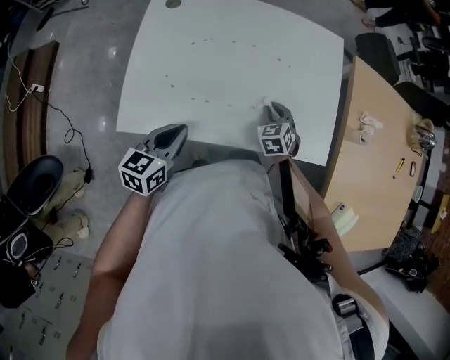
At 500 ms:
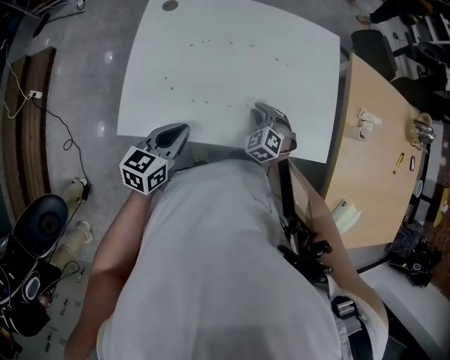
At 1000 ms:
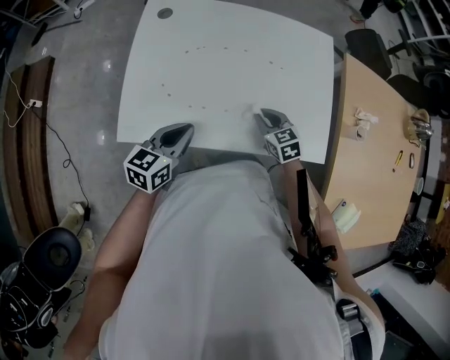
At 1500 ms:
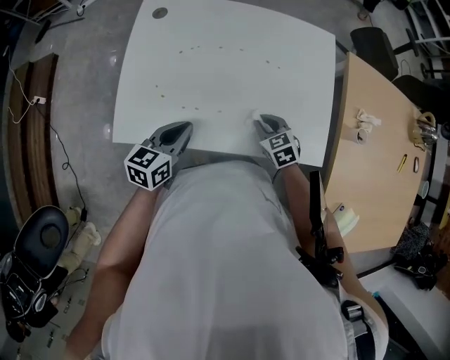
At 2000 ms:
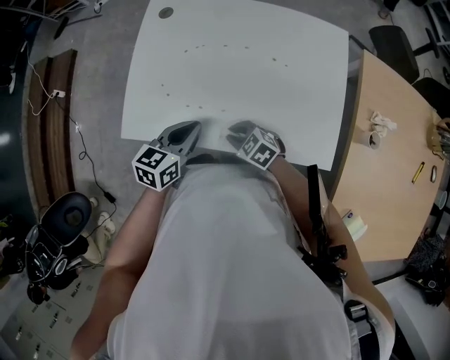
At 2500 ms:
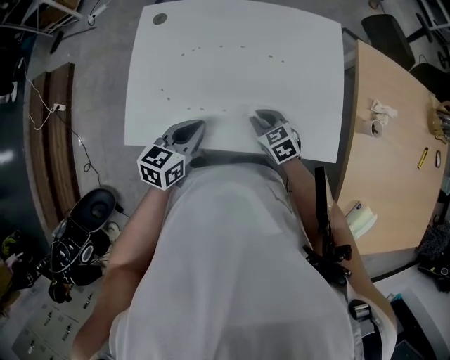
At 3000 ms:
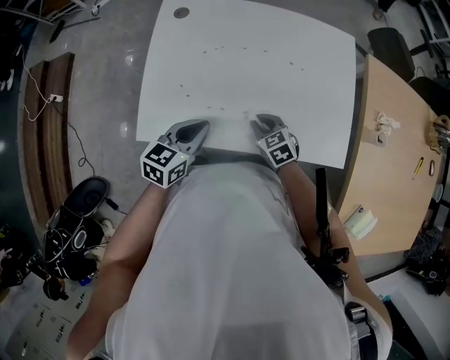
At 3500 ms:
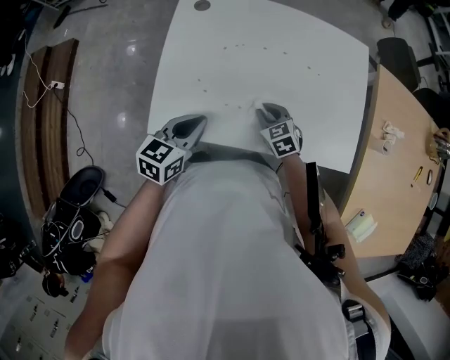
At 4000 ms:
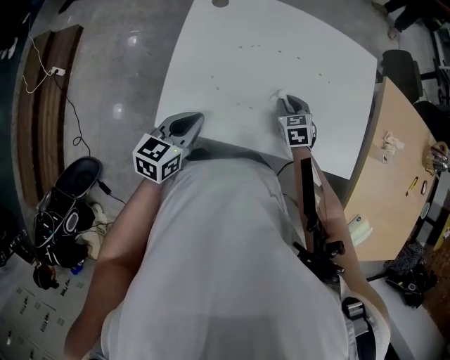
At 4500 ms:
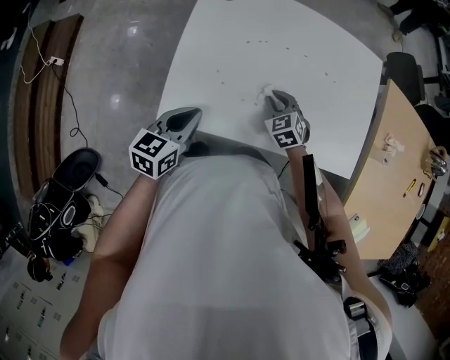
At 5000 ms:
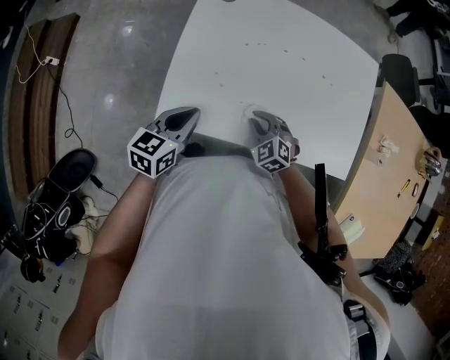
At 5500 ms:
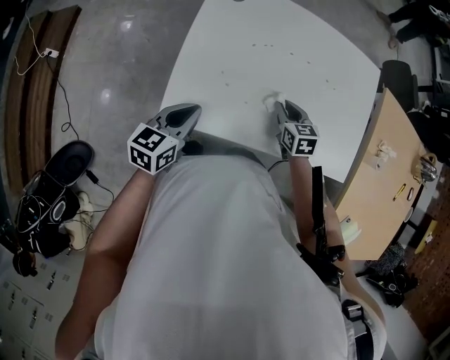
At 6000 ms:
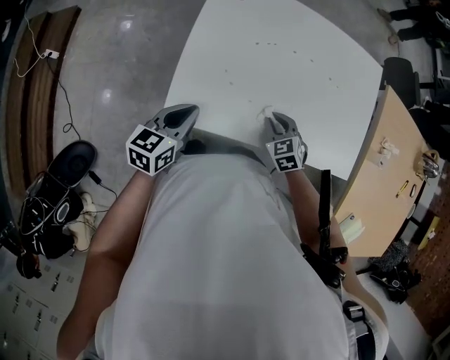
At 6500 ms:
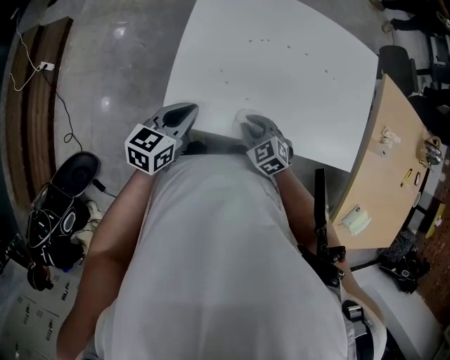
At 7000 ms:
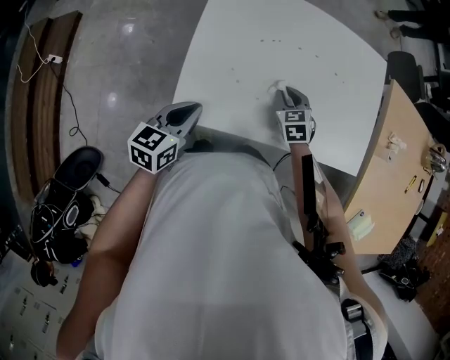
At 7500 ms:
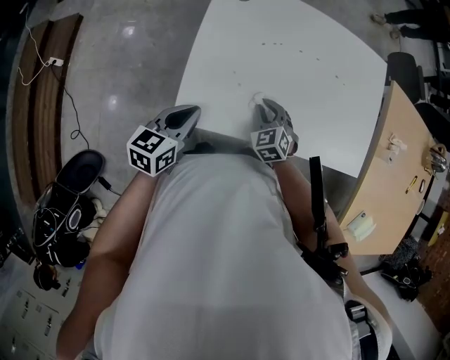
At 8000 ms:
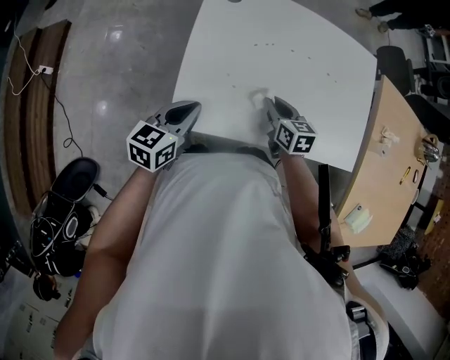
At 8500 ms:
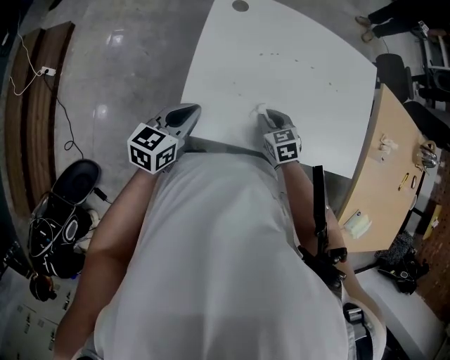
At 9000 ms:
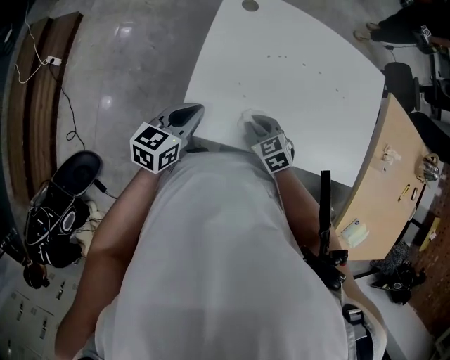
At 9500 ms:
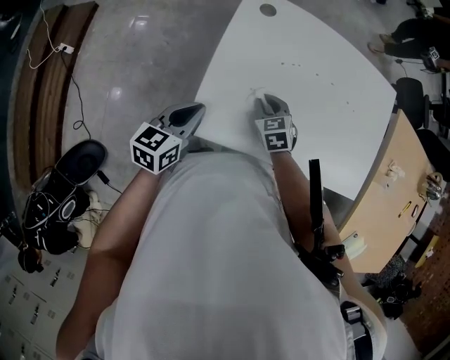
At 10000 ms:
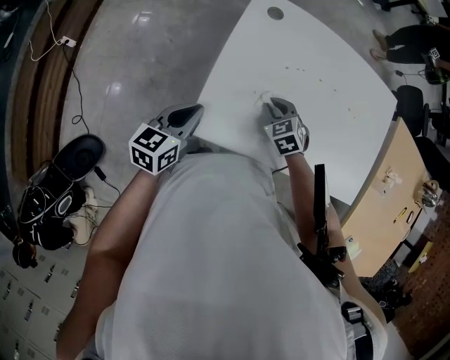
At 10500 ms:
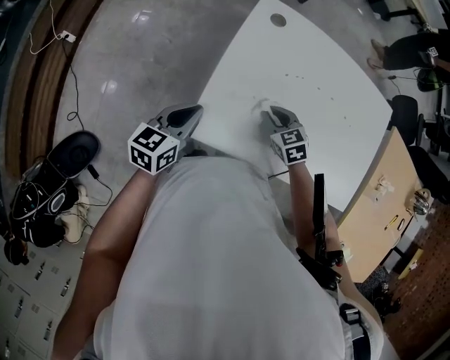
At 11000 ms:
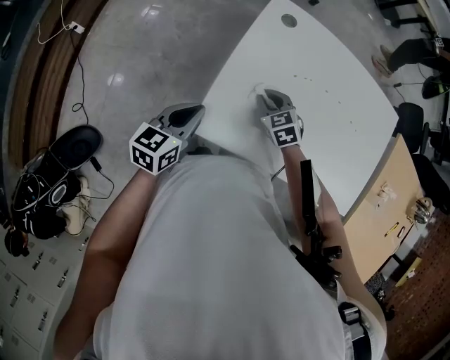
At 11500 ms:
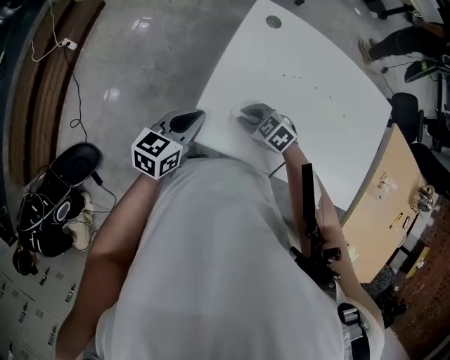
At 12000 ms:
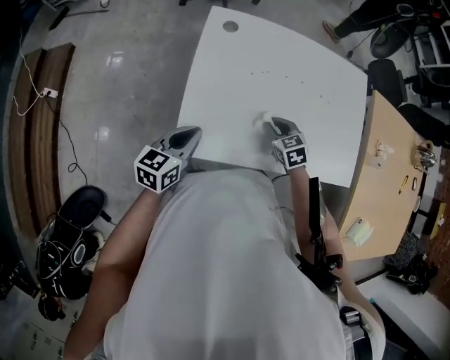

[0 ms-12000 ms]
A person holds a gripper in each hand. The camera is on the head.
0 ms to 2000 ms: The left gripper shifts by approximately 5 cm, while the right gripper ends up some 15 cm from where it was, and turns by about 50 degrees.
2000 ms to 4000 ms: The left gripper ends up roughly 15 cm from where it was; the right gripper changes place by approximately 15 cm, and rotates some 40 degrees.
4000 ms to 6000 ms: The right gripper moves forward and backward over some 10 cm, changing direction 2 times. The left gripper ends up approximately 5 cm from where it was.
6000 ms to 8000 ms: The right gripper swings forward and backward, roughly 15 cm each way, with 2 reversals, and swivels roughly 40 degrees.
8000 ms to 10000 ms: The left gripper goes about 5 cm to the left. Meanwhile the right gripper shifts about 10 cm to the left, and rotates around the line of its fingers by approximately 40 degrees, counterclockwise from behind.
10000 ms to 12000 ms: The right gripper shifts by about 10 cm, and turns by some 20 degrees.

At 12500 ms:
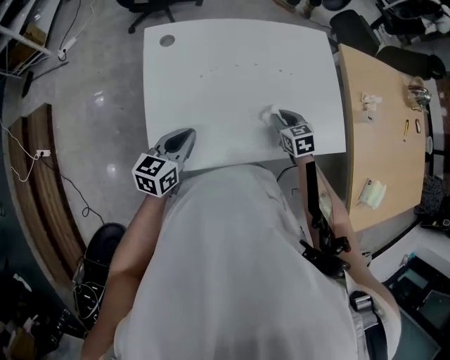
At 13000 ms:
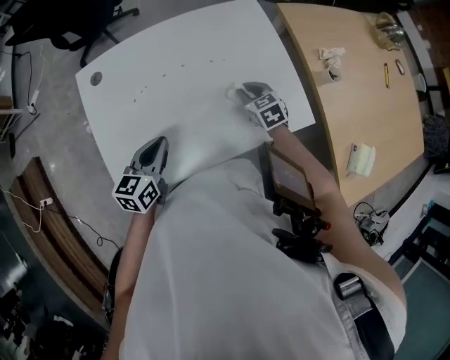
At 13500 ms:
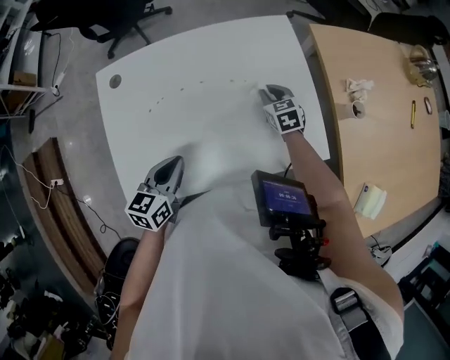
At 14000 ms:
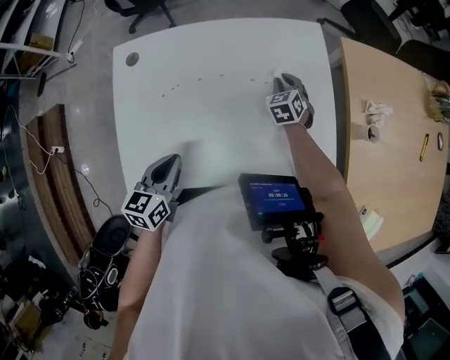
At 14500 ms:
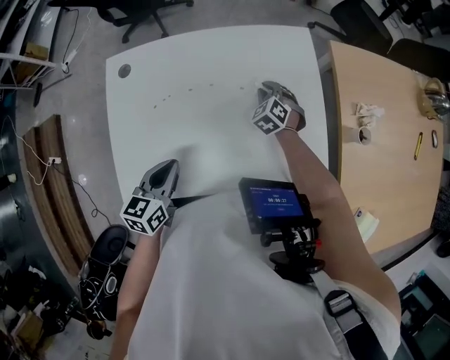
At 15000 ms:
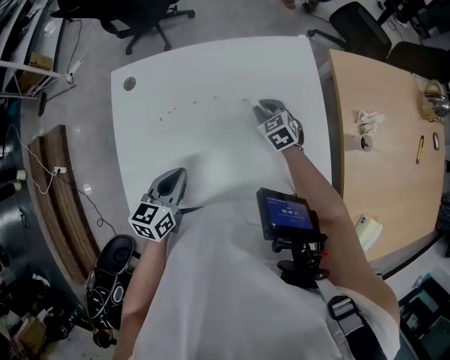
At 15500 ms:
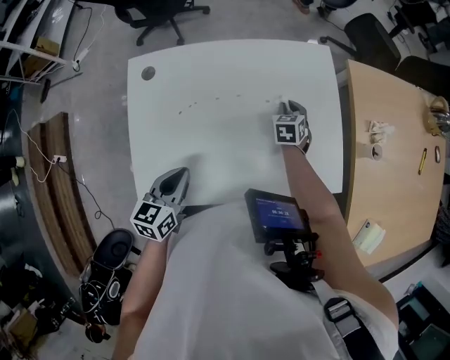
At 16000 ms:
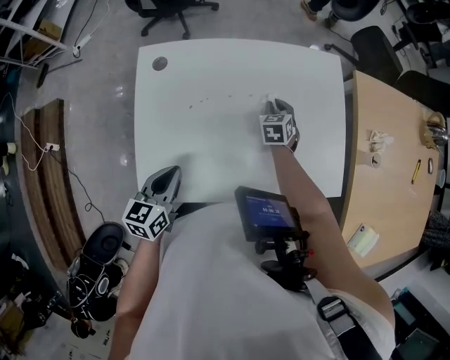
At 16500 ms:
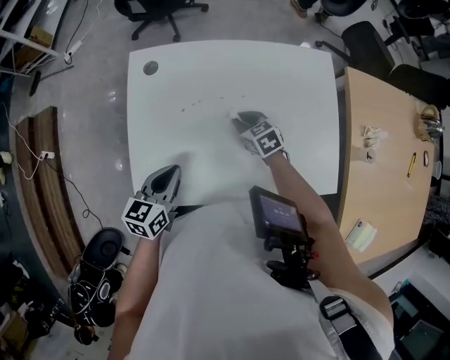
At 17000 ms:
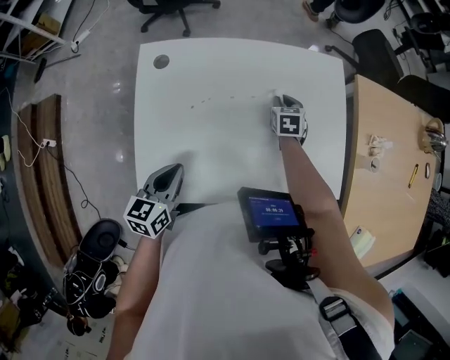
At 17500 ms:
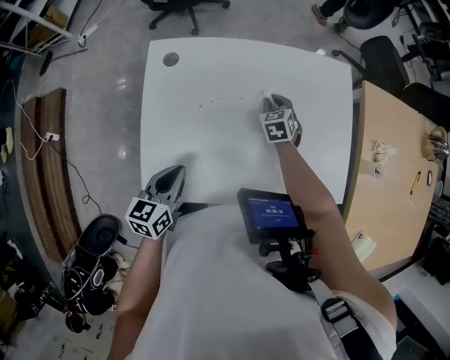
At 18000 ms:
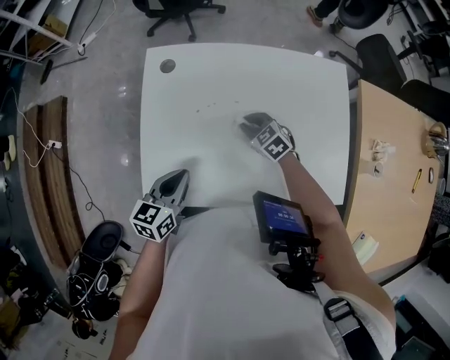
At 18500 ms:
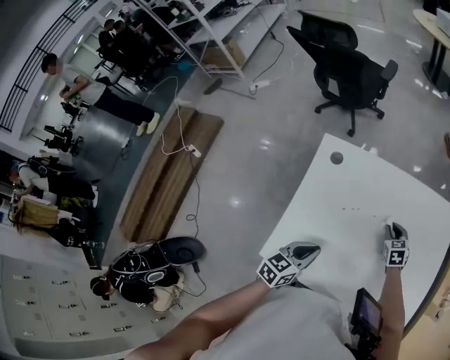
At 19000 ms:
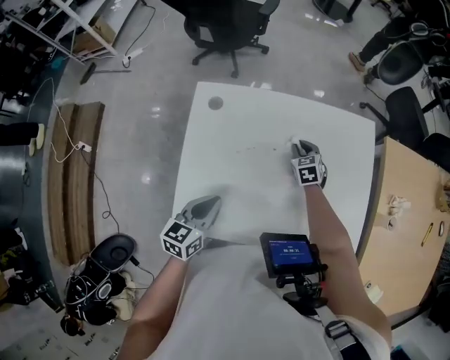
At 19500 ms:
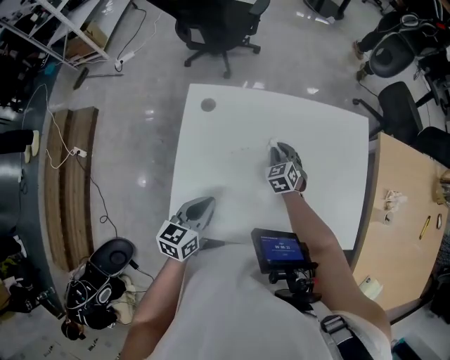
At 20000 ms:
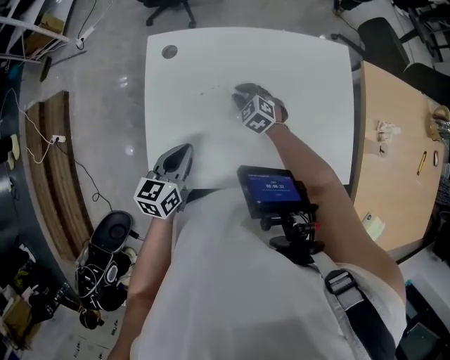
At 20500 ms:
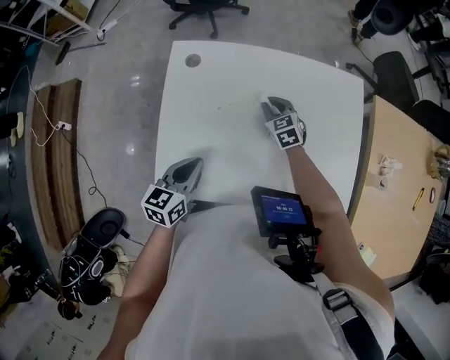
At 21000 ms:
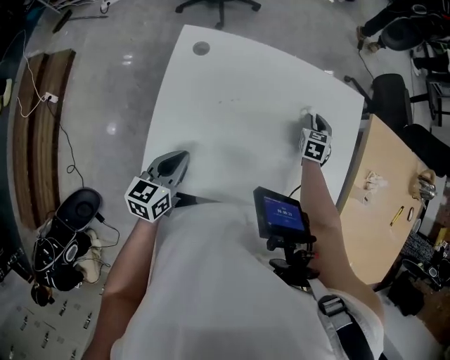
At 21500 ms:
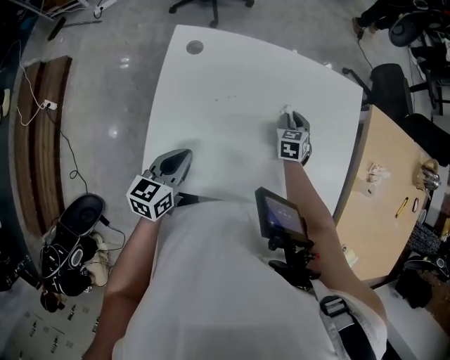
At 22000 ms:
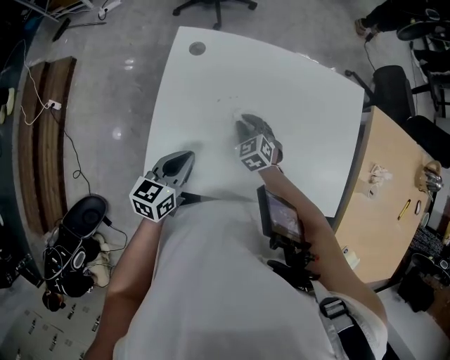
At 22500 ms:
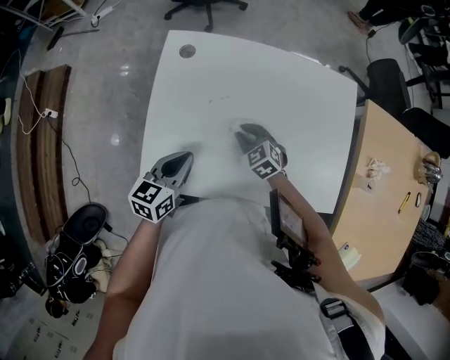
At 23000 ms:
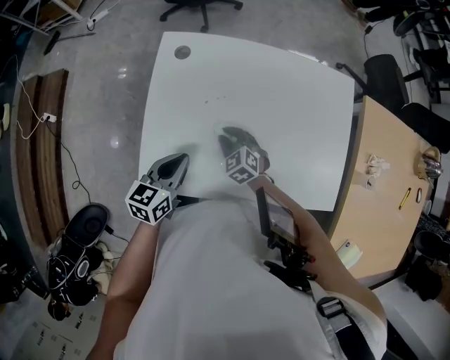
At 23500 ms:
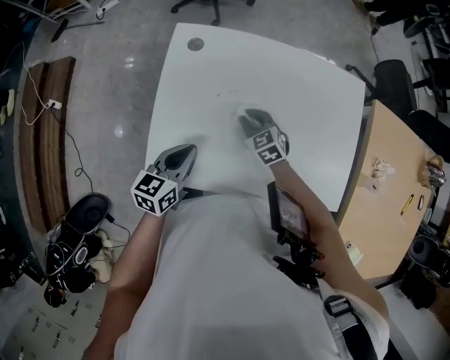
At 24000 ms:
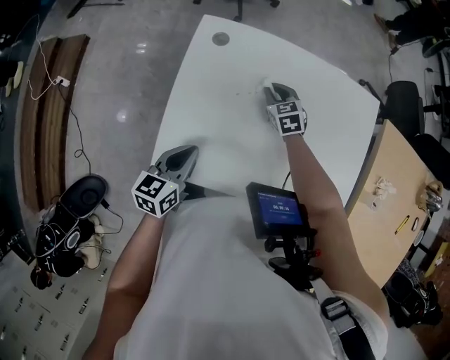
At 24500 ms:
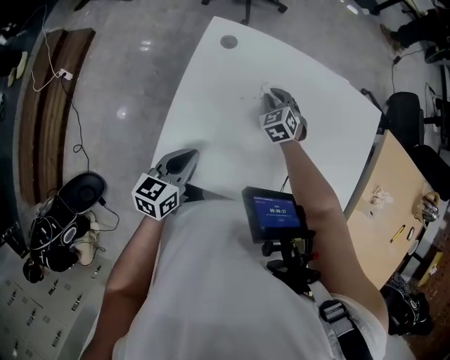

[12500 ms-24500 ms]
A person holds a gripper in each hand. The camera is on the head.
12500 ms to 14500 ms: The right gripper goes approximately 20 cm forward, and changes its angle by roughly 30 degrees. Meanwhile the left gripper shifts approximately 10 cm to the right.
14500 ms to 16500 ms: The right gripper shifts by roughly 20 cm, and rotates some 40 degrees. Meanwhile the left gripper shifts by some 10 cm.
18500 ms to 20500 ms: The right gripper goes about 5 cm to the left.
20500 ms to 22500 ms: The right gripper travels backward by roughly 15 cm, and reaches about 15 cm to the right, then returns.
22500 ms to 24500 ms: The left gripper shifts by some 5 cm. The right gripper moves forward, some 15 cm.

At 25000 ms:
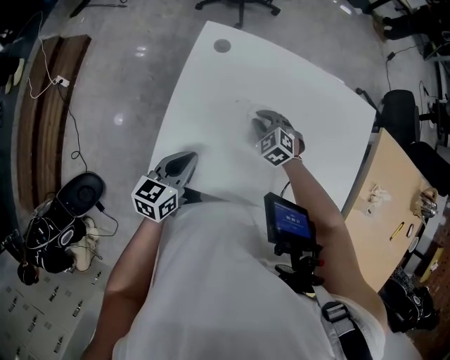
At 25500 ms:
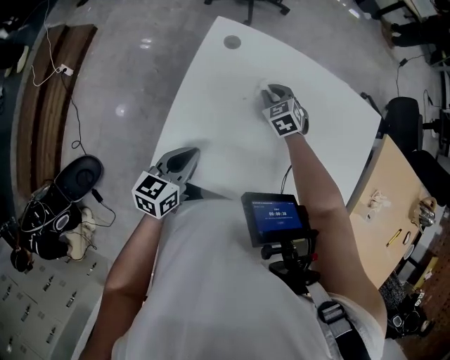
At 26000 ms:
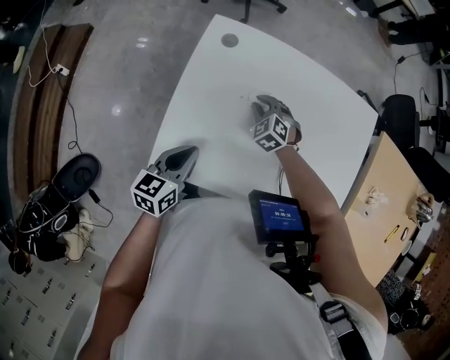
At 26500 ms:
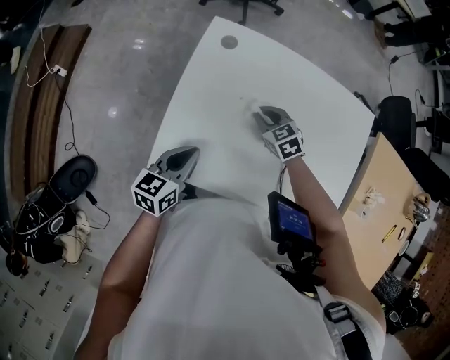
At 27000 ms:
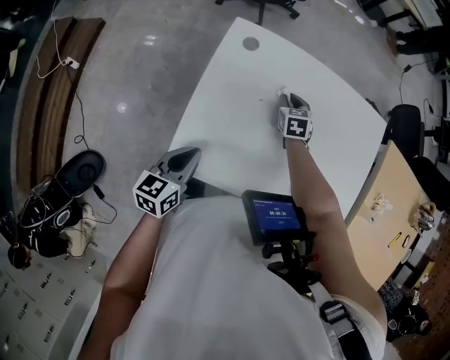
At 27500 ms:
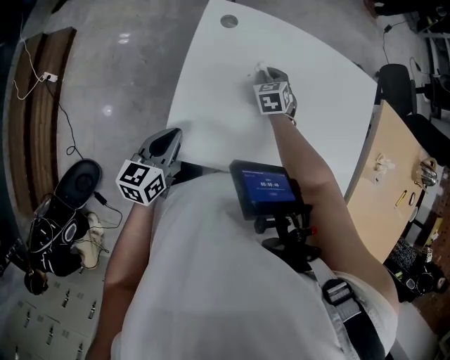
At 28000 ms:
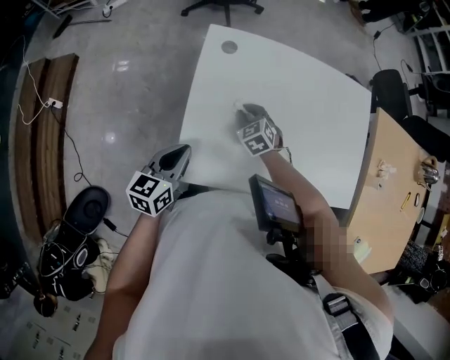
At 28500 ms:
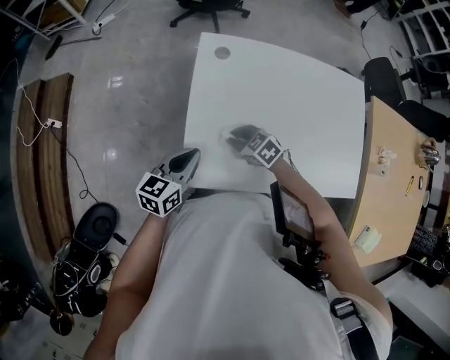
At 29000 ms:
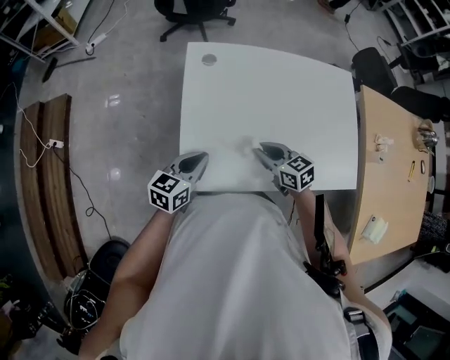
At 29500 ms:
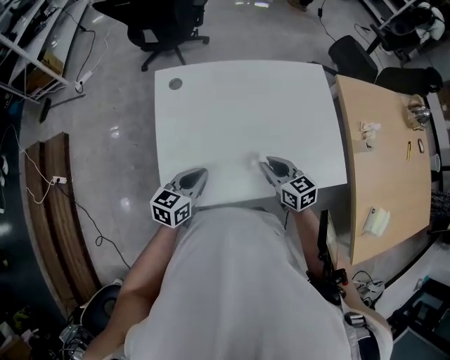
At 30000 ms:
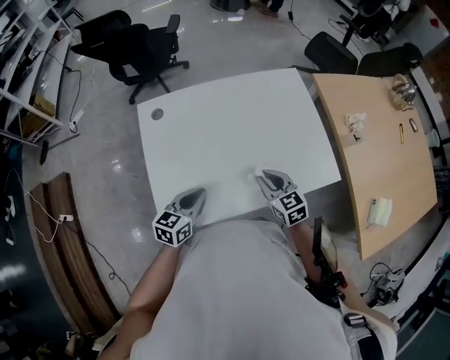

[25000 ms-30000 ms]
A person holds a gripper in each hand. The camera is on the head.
25000 ms to 27500 ms: The right gripper goes forward and backward, approximately 10 cm each way, reversing 2 times, and changes its angle by some 40 degrees; the left gripper shifts some 10 cm to the left.
27500 ms to 30000 ms: The left gripper moves some 15 cm, and rotates approximately 30 degrees; the right gripper shifts by roughly 30 cm, and turns by some 30 degrees.
